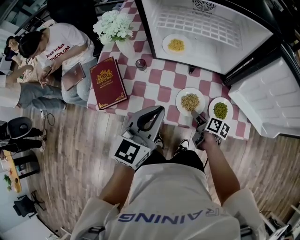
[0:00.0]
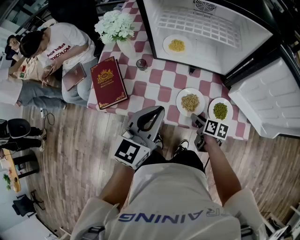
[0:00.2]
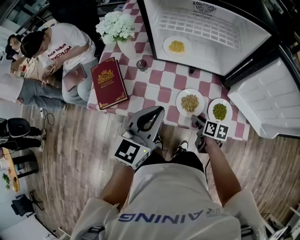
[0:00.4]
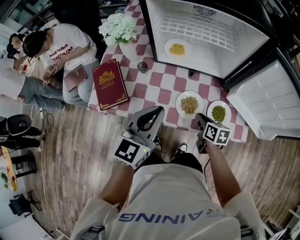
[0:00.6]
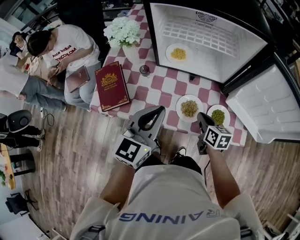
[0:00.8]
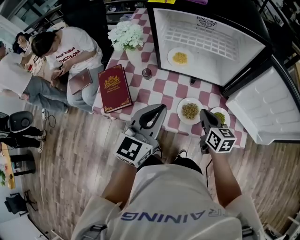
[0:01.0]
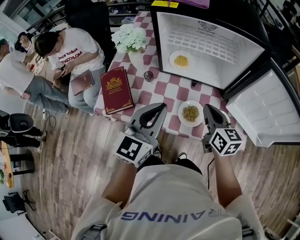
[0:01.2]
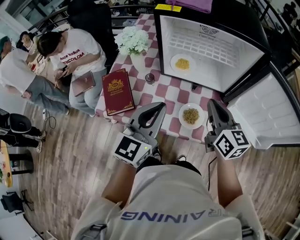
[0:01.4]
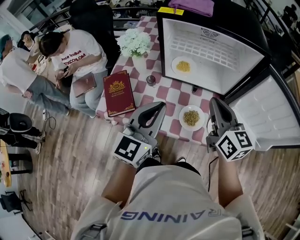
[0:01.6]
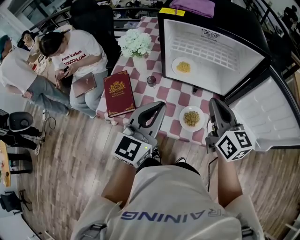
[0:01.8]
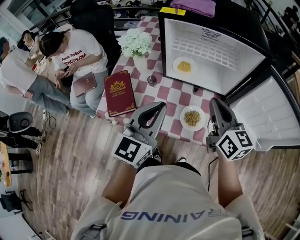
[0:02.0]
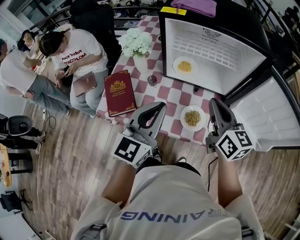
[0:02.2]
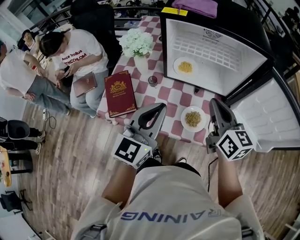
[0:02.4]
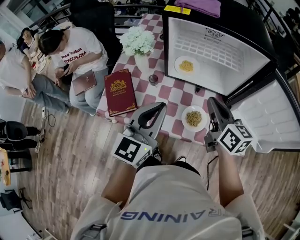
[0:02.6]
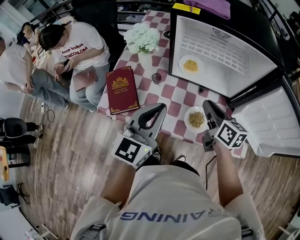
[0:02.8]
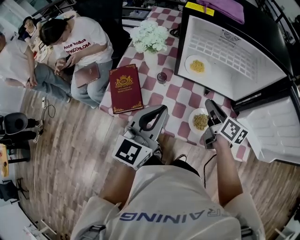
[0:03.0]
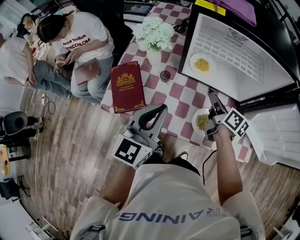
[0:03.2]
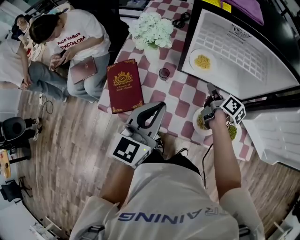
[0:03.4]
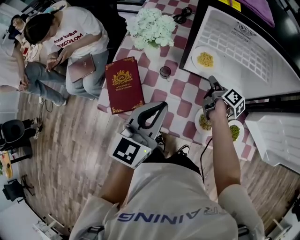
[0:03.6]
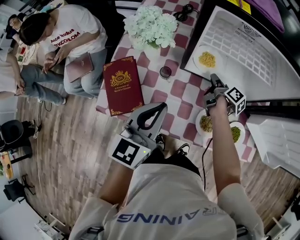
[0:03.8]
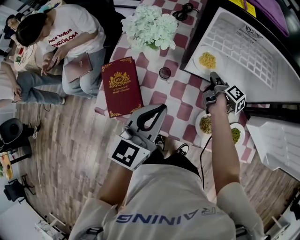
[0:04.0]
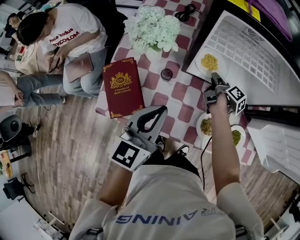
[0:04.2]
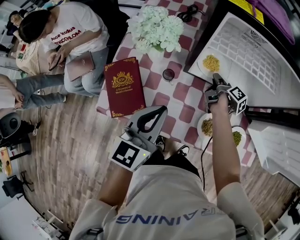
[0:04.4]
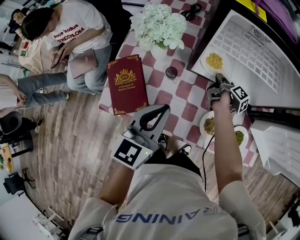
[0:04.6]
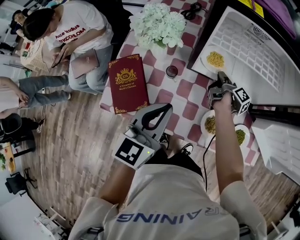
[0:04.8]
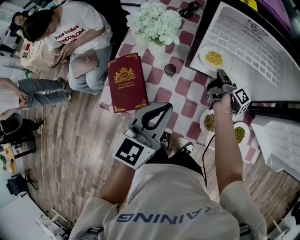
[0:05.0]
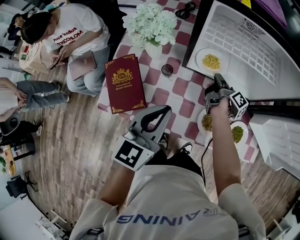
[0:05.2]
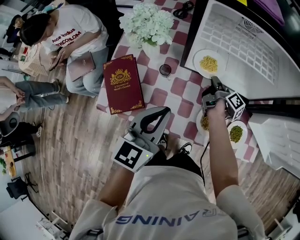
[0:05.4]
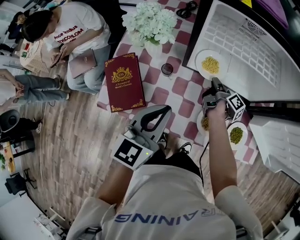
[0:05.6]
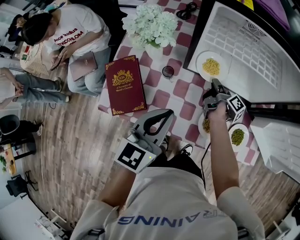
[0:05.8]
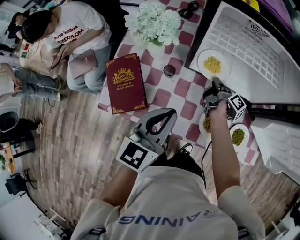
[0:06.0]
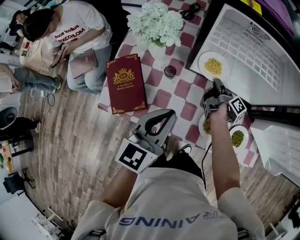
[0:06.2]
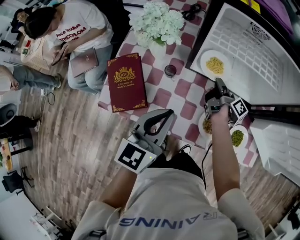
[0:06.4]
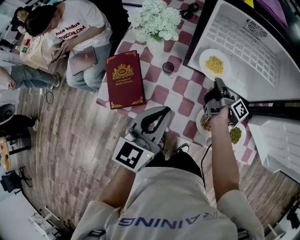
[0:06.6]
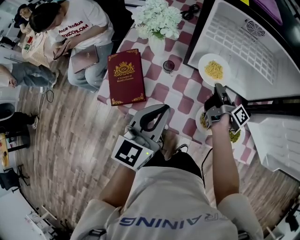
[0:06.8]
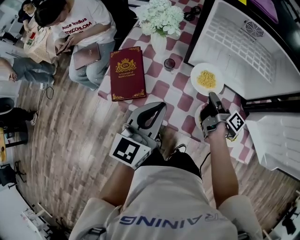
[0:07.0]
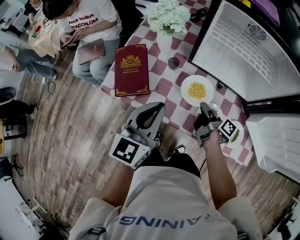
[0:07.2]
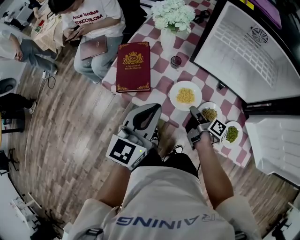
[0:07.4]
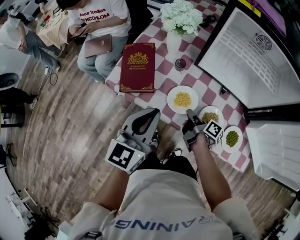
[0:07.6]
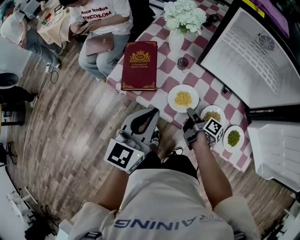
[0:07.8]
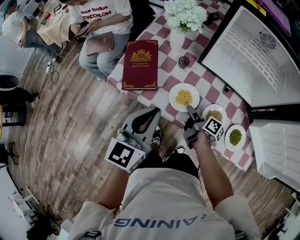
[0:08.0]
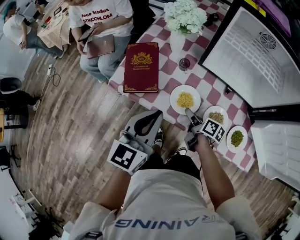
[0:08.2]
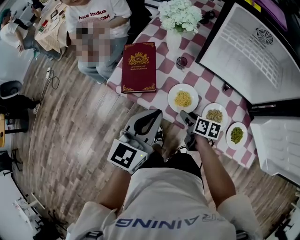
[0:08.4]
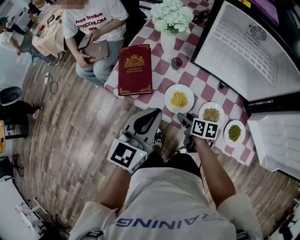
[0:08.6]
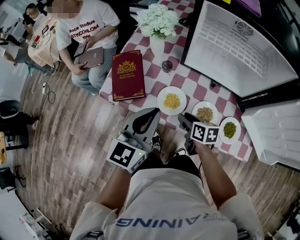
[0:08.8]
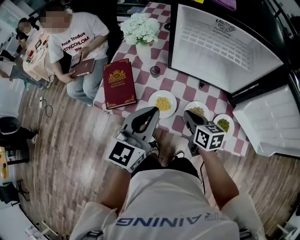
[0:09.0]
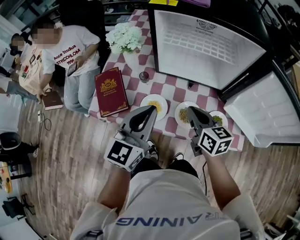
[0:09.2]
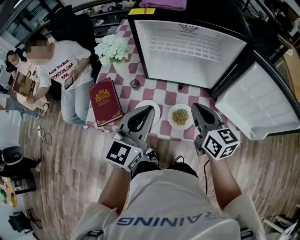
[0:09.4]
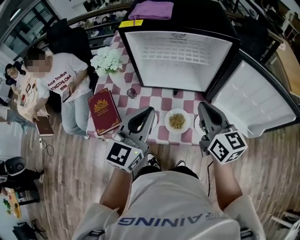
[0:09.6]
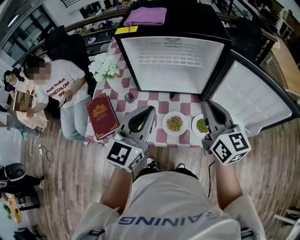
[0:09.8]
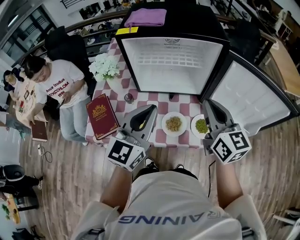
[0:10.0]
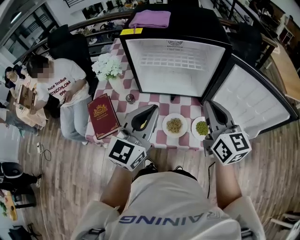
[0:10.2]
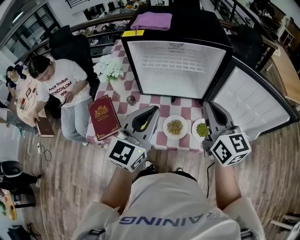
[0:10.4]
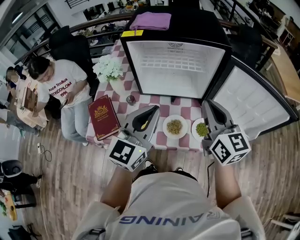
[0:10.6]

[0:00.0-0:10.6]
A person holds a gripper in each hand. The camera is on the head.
0:00.0 to 0:01.6: The left gripper shifts some 10 cm upward, while the right gripper travels upward by about 35 cm, rotates around the line of its fingers by some 50 degrees, counterclockwise from behind, and closes its fingers.
0:01.6 to 0:03.0: The right gripper goes approximately 15 cm downward and forward, and swivels roughly 30 degrees; the left gripper is displaced to the left by about 5 cm.
0:03.0 to 0:04.6: The left gripper shifts roughly 10 cm downward and forward; the right gripper goes about 25 cm forward and downward, and rotates around the line of its fingers by about 50 degrees, clockwise from behind.
0:04.6 to 0:06.0: The grippers move only a little.
0:06.0 to 0:07.6: The right gripper is displaced backward and to the left by roughly 25 cm, and turns by about 30 degrees. The left gripper goes roughly 10 cm backward and to the left.
0:07.6 to 0:09.0: The left gripper shifts about 5 cm to the right. The right gripper heads upward, covering some 10 cm, twists approximately 50 degrees counterclockwise, seen from behind, and opens, then closes again.
0:09.0 to 0:10.6: The left gripper heads to the right and upward, covering about 15 cm; the right gripper is displaced upward and to the right by about 30 cm, and turns by approximately 40 degrees.

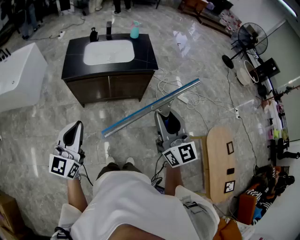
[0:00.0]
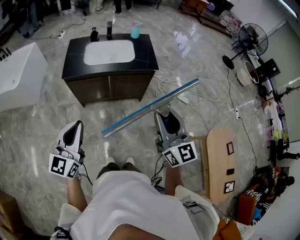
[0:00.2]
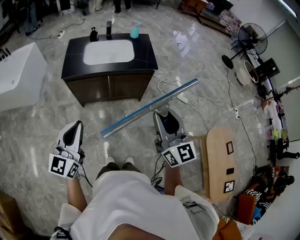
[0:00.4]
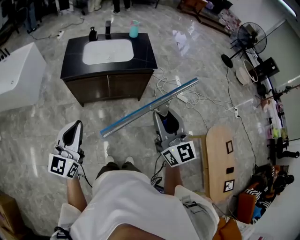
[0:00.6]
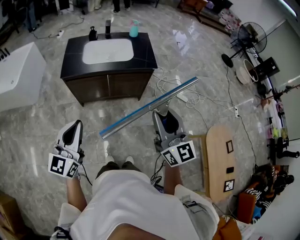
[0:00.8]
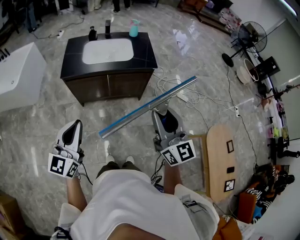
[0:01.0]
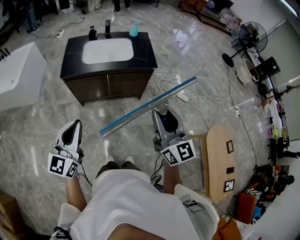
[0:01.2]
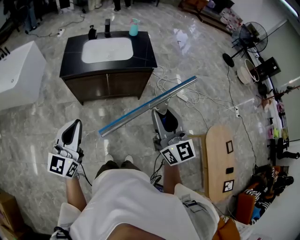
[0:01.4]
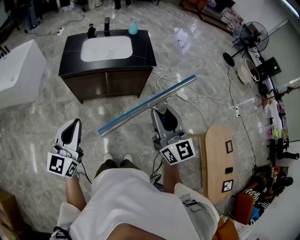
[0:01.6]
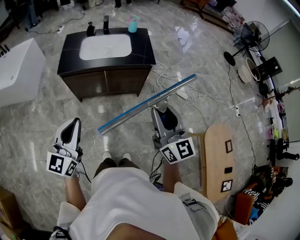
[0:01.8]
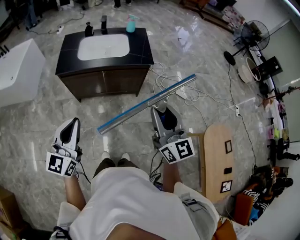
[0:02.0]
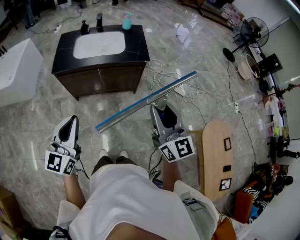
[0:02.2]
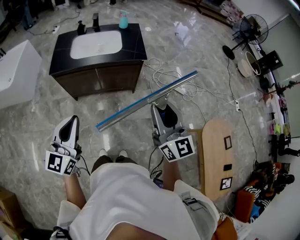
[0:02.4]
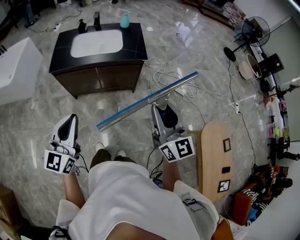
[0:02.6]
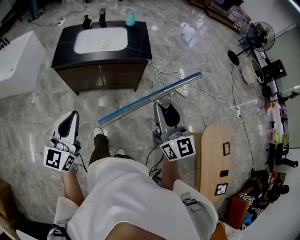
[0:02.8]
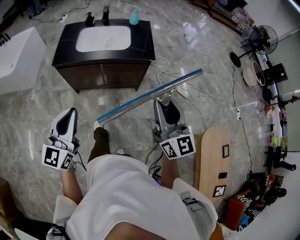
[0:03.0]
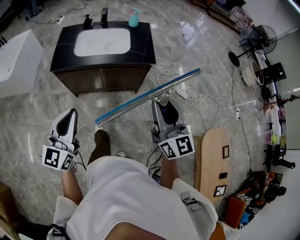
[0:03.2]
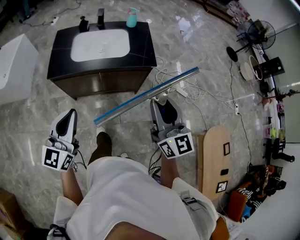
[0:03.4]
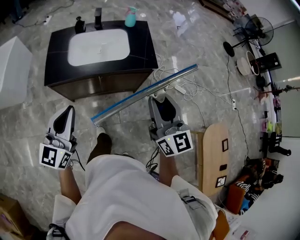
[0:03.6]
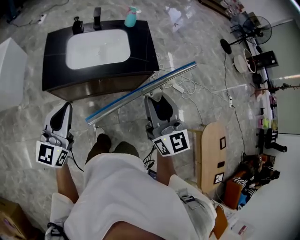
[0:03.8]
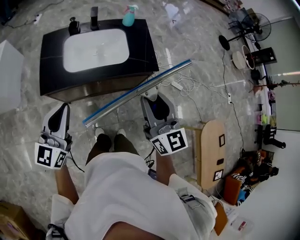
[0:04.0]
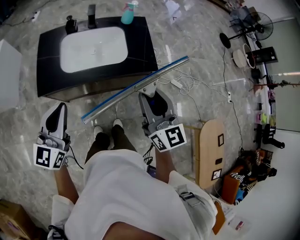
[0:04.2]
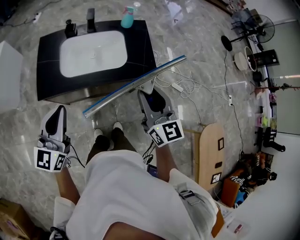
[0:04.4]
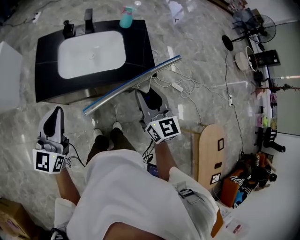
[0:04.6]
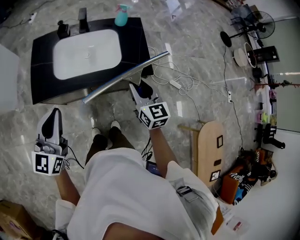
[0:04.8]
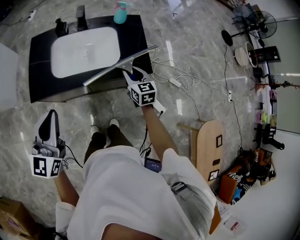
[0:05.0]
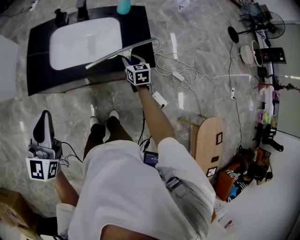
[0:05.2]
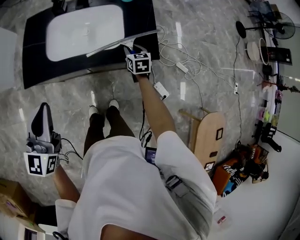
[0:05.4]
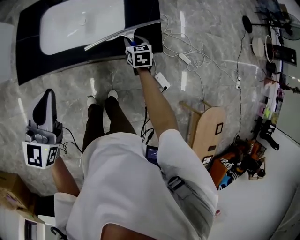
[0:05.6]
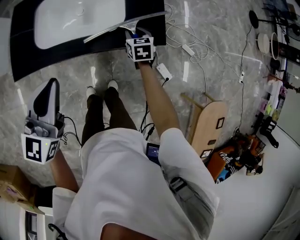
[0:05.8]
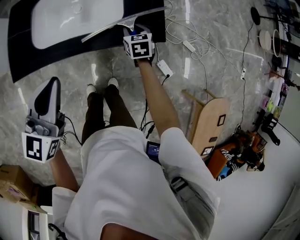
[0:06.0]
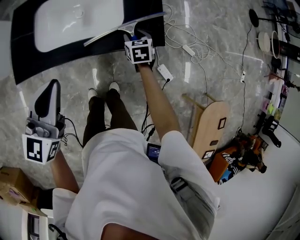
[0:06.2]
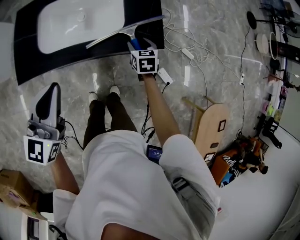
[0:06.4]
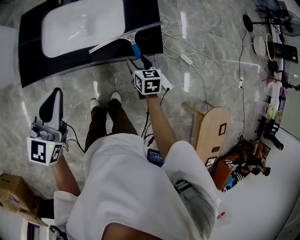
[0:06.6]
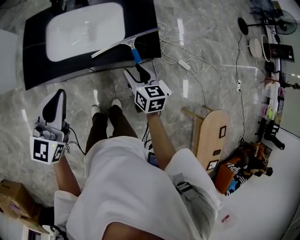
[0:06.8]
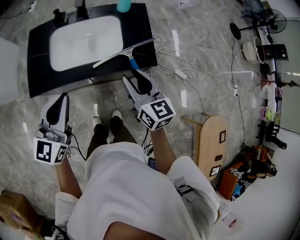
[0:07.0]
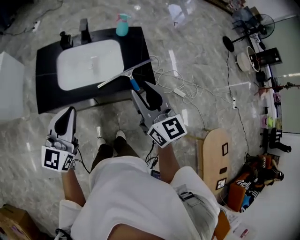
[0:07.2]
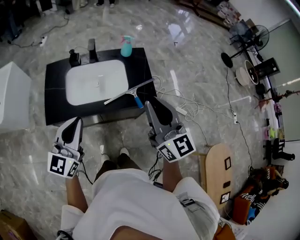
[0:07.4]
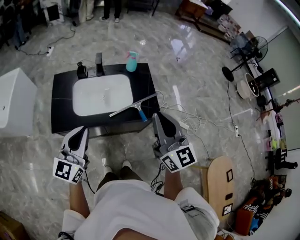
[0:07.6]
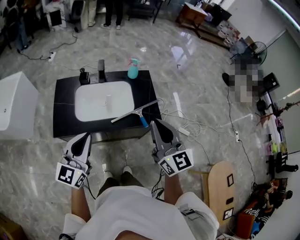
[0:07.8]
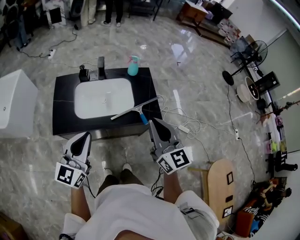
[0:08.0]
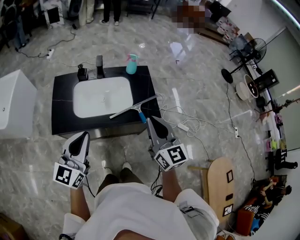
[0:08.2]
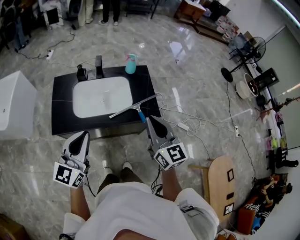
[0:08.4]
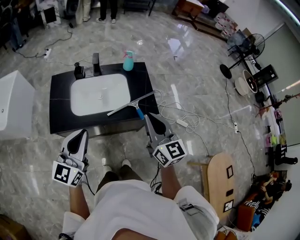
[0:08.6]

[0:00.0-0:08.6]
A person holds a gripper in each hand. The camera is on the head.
0:00.0 to 0:01.4: Neither gripper changes place.
0:01.4 to 0:02.8: Both grippers move to the right, roughly 10 cm.
0:02.8 to 0:04.4: Both grippers move forward and to the left, about 35 cm.
0:04.4 to 0:05.8: The right gripper travels downward and forward by some 40 cm, and tilts its fingers roughly 40 degrees downward. Meanwhile the left gripper heads forward, to the right and downward, covering about 15 cm.
0:05.8 to 0:07.2: The right gripper heads upward and backward, covering approximately 40 cm, tips its fingers upward by roughly 40 degrees, and opens and closes again. Meanwhile the left gripper travels upward by approximately 5 cm.
0:07.2 to 0:08.6: The right gripper closes its fingers, while the left gripper ends up roughly 5 cm from where it was.

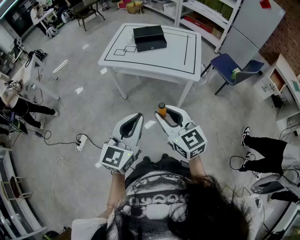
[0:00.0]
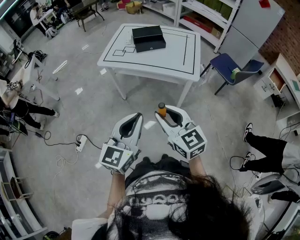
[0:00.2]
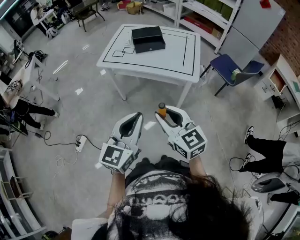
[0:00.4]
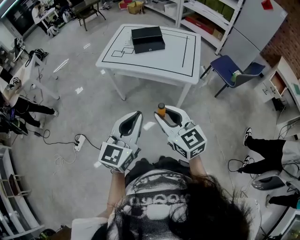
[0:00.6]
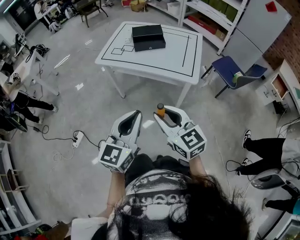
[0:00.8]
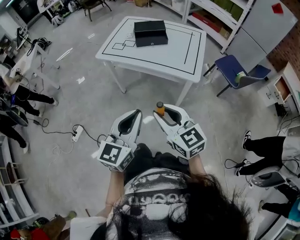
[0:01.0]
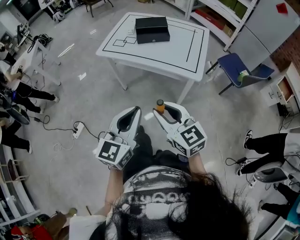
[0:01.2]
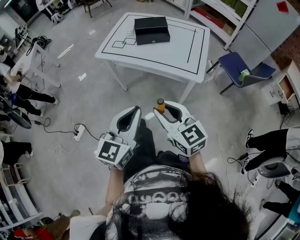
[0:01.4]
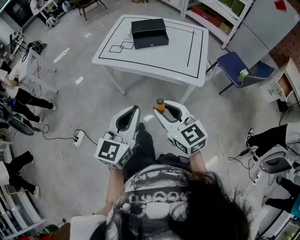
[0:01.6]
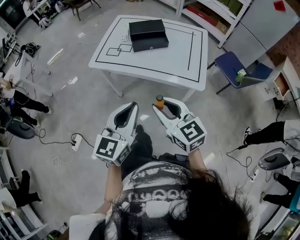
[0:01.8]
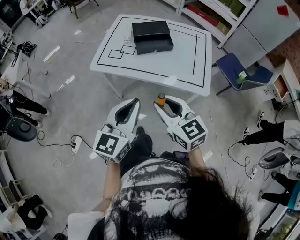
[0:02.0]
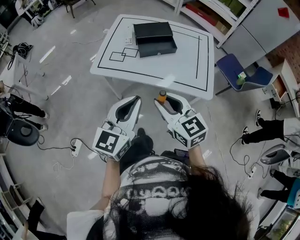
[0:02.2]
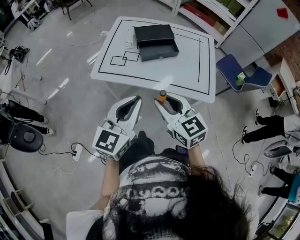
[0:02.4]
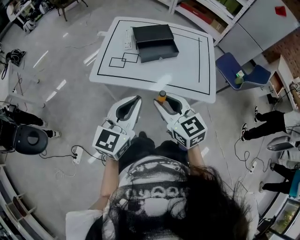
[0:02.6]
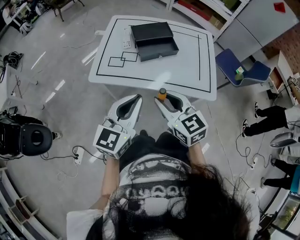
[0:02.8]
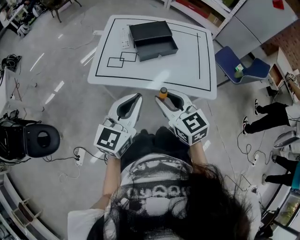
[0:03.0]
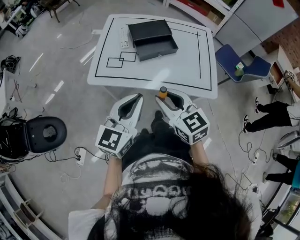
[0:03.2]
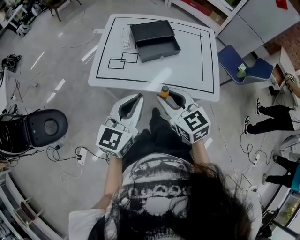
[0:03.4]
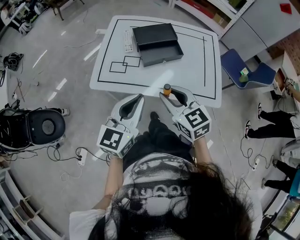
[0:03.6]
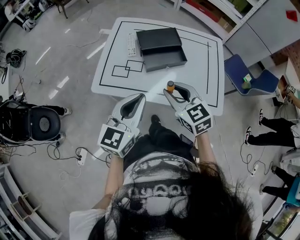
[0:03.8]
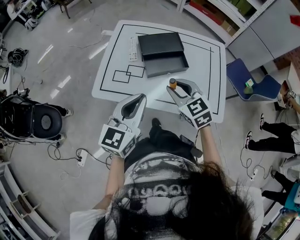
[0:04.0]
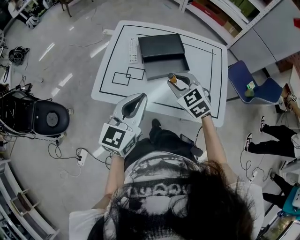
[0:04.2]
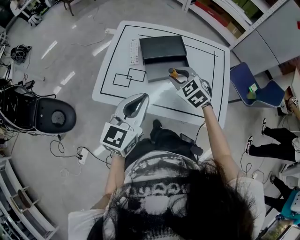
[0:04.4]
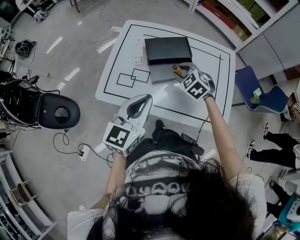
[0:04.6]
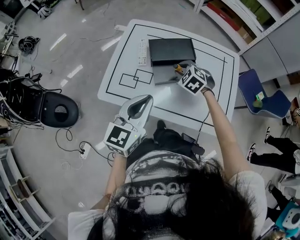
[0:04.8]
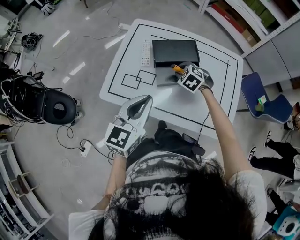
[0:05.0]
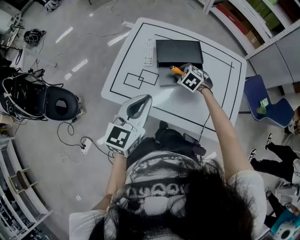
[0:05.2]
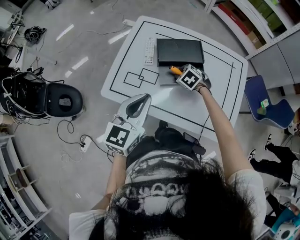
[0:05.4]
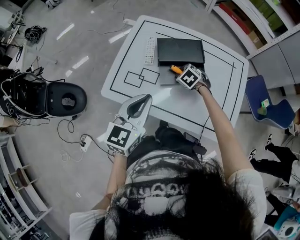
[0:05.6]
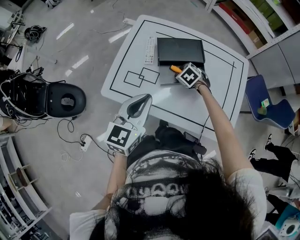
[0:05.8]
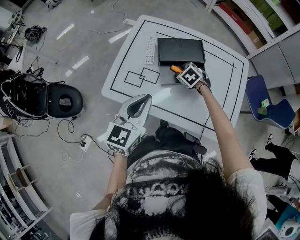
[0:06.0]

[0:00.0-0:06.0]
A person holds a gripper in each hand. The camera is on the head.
0:00.0 to 0:01.6: Both grippers travel together forward, roughly 10 cm.
0:01.6 to 0:03.0: The two grippers go roughly 25 cm forward and to the left.
0:03.0 to 0:04.4: The left gripper is displaced forward by about 15 cm. Meanwhile the right gripper heads forward, covering approximately 25 cm, and swivels some 30 degrees.
0:04.4 to 0:06.0: The left gripper moves some 5 cm; the right gripper travels downward and forward by about 20 cm, and rotates about 20 degrees.
